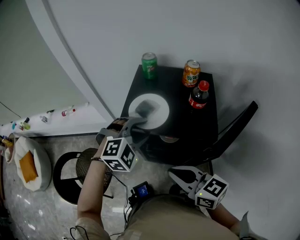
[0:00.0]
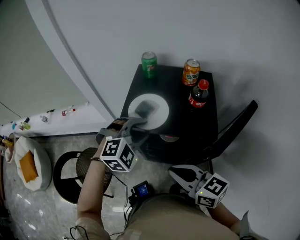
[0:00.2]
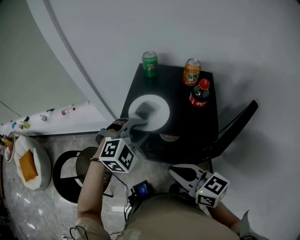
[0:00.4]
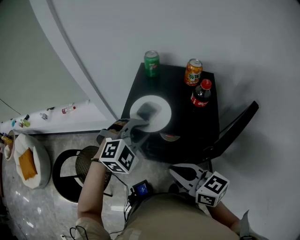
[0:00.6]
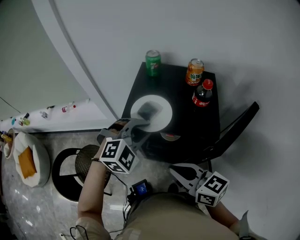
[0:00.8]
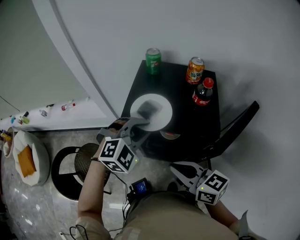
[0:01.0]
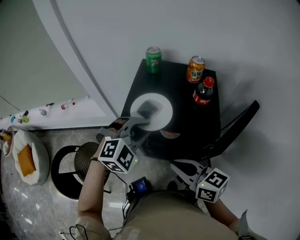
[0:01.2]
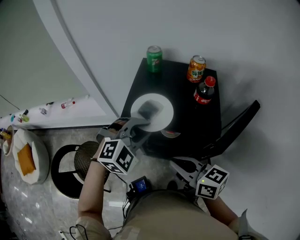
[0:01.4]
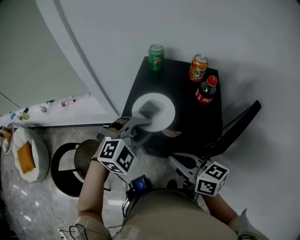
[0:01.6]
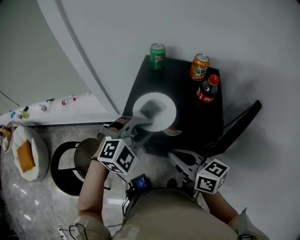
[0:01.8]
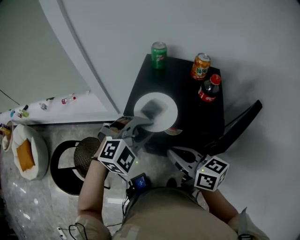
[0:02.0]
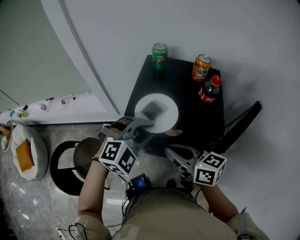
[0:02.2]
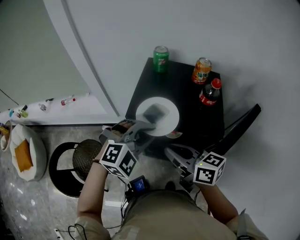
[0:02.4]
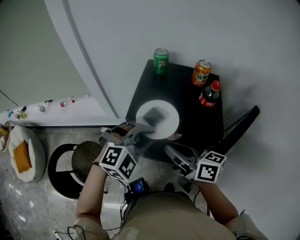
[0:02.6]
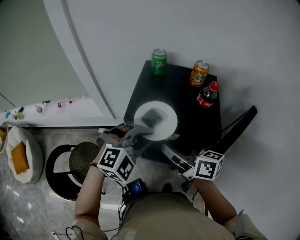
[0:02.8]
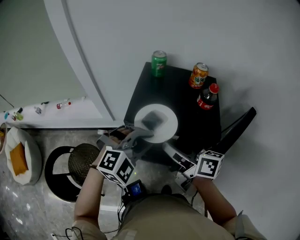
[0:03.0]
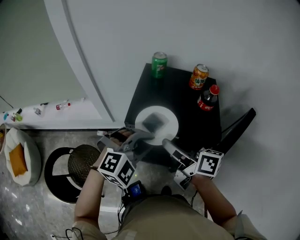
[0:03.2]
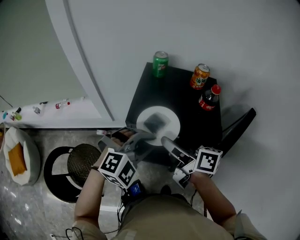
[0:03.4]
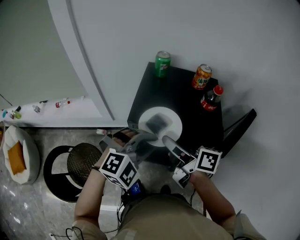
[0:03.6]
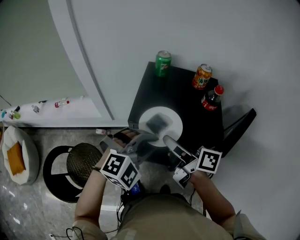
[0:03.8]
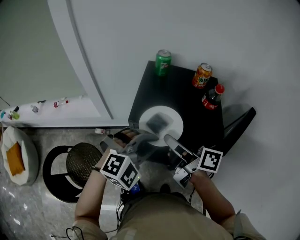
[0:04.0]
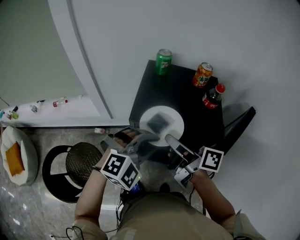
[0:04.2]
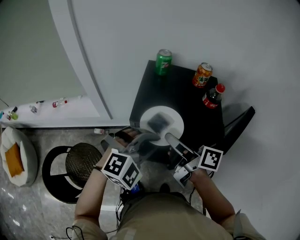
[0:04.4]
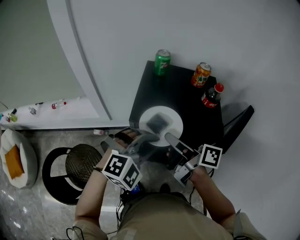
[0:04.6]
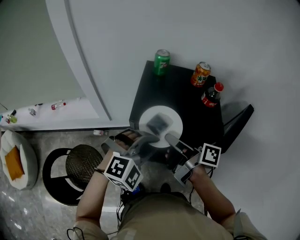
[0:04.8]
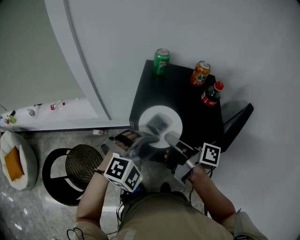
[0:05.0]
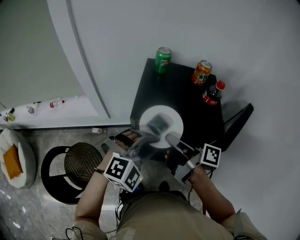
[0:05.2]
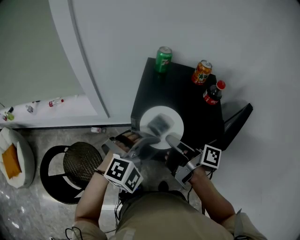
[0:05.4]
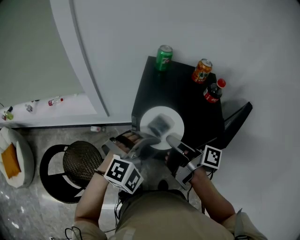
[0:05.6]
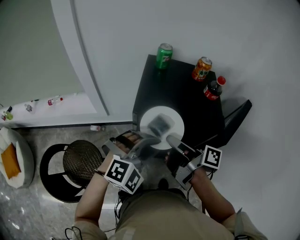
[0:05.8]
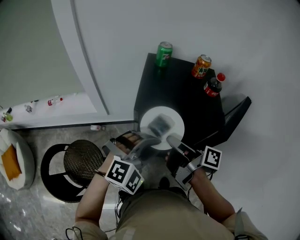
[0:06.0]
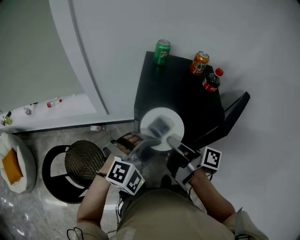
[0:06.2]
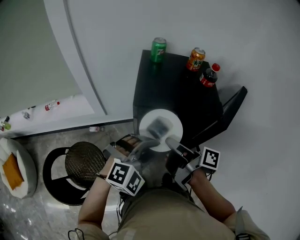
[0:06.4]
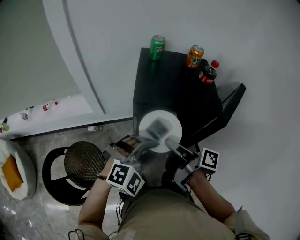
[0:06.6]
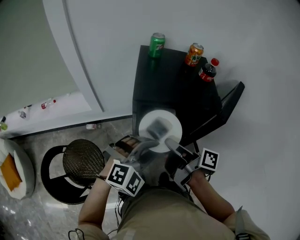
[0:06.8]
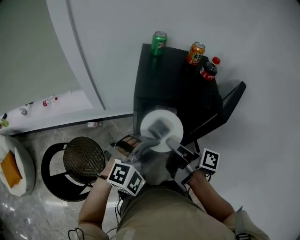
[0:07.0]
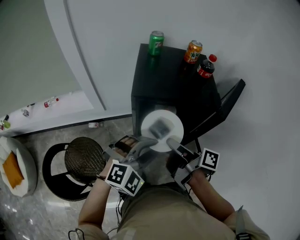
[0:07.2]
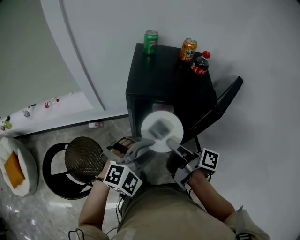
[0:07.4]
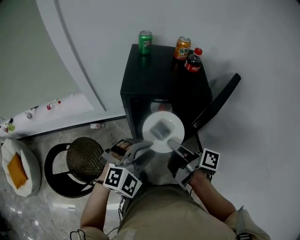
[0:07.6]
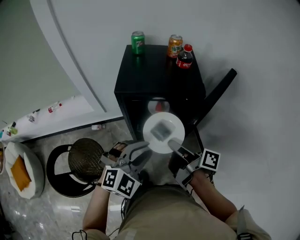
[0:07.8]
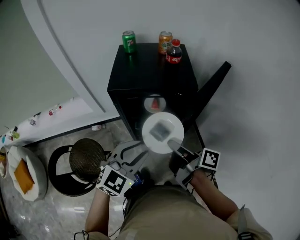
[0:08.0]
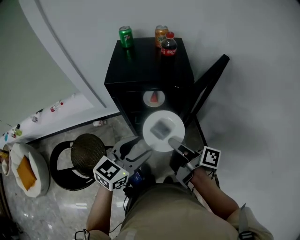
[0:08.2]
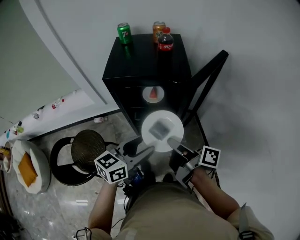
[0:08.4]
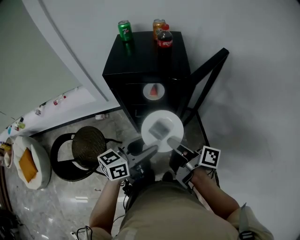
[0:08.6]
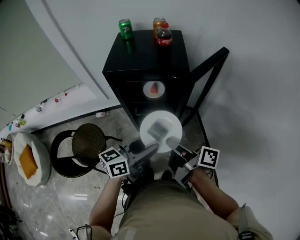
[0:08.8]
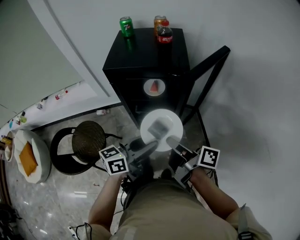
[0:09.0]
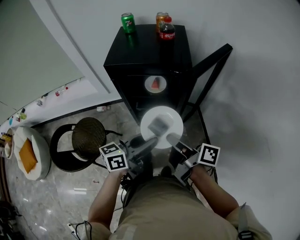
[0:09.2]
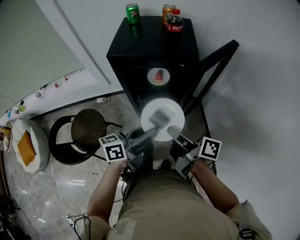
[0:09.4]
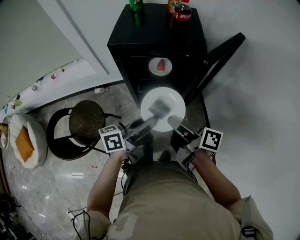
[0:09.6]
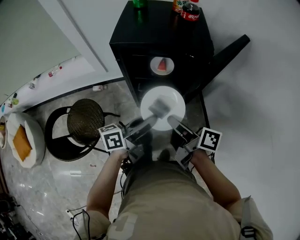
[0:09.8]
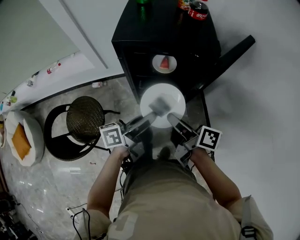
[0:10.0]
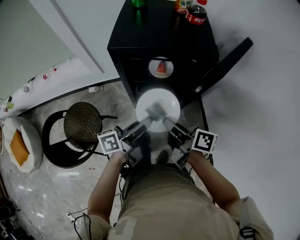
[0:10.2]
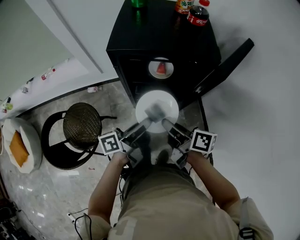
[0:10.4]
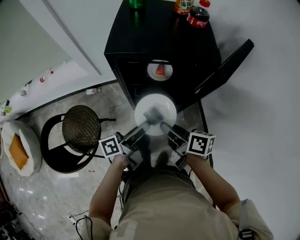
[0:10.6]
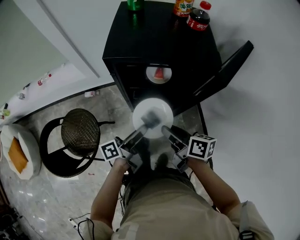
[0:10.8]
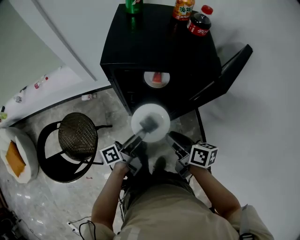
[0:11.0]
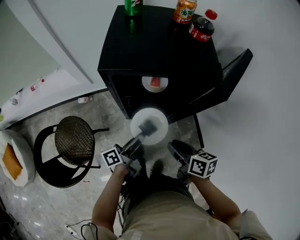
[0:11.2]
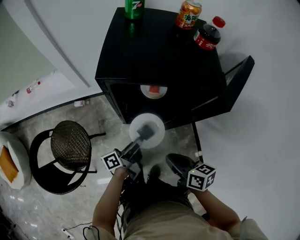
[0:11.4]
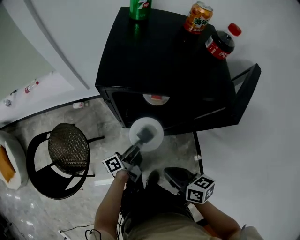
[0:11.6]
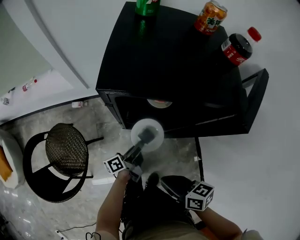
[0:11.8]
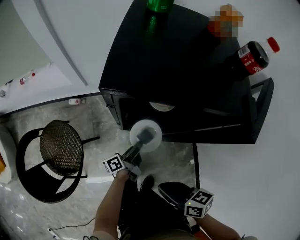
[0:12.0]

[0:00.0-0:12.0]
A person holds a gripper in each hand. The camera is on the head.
0:00.0 to 0:01.6: The grippers make only small movements.
0:01.6 to 0:03.0: The right gripper goes approximately 5 cm forward, turns by roughly 20 degrees, and opens up.
0:03.0 to 0:04.4: The grippers move only a little.
0:04.4 to 0:06.0: The right gripper shifts by roughly 5 cm, swivels about 20 degrees, and closes; the left gripper moves approximately 5 cm.
0:06.0 to 0:07.6: The right gripper goes some 10 cm backward and to the right. The left gripper shifts roughly 10 cm backward.
0:07.6 to 0:09.0: The left gripper is displaced to the right and backward by roughly 10 cm, and twists approximately 80 degrees counterclockwise, seen from behind, while the right gripper moves backward and to the right, approximately 15 cm.
0:09.0 to 0:10.4: Both grippers travel together to the left, forward and downward, roughly 15 cm. The left gripper changes its angle by some 40 degrees, and closes, while the right gripper swivels roughly 20 degrees.
0:10.4 to 0:12.0: The left gripper is displaced downward by some 25 cm. The right gripper travels downward by some 10 cm, and turns by some 30 degrees.

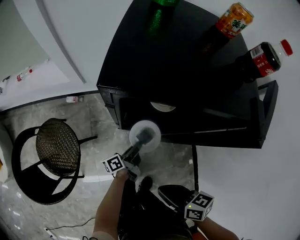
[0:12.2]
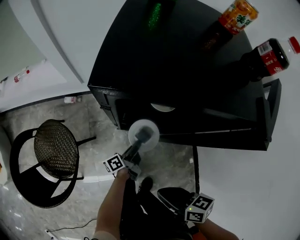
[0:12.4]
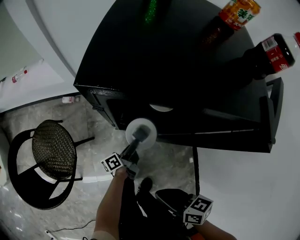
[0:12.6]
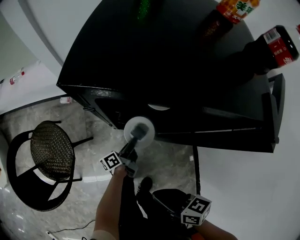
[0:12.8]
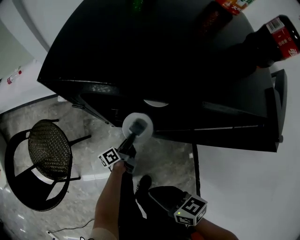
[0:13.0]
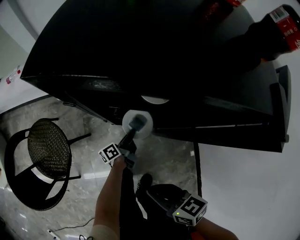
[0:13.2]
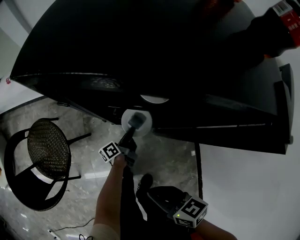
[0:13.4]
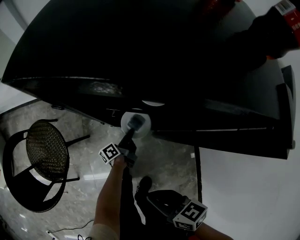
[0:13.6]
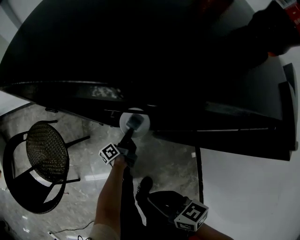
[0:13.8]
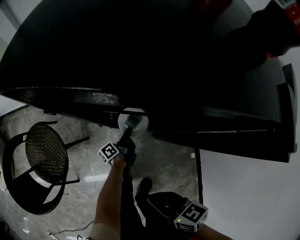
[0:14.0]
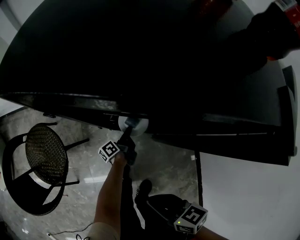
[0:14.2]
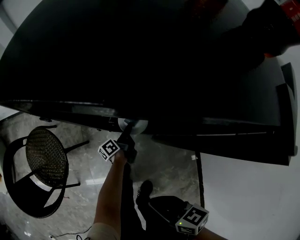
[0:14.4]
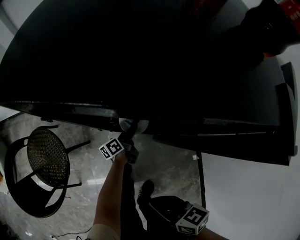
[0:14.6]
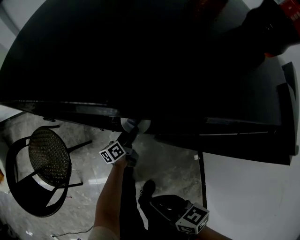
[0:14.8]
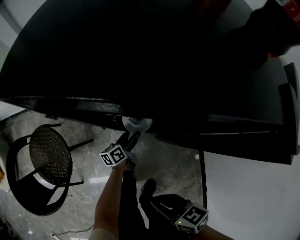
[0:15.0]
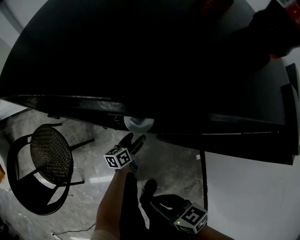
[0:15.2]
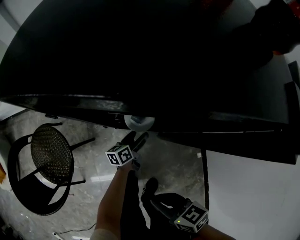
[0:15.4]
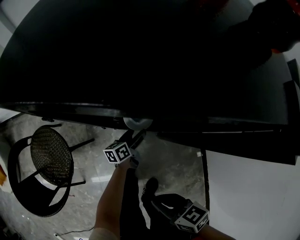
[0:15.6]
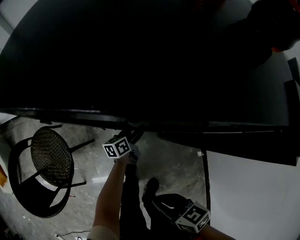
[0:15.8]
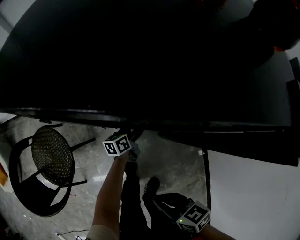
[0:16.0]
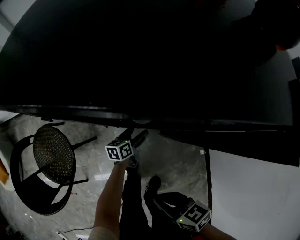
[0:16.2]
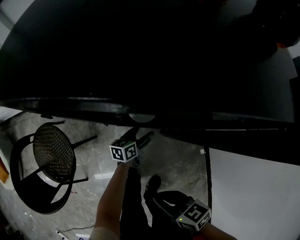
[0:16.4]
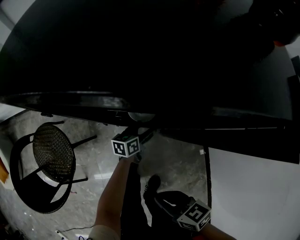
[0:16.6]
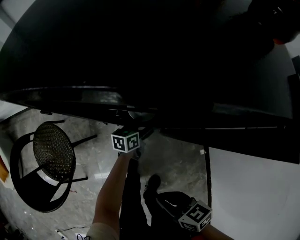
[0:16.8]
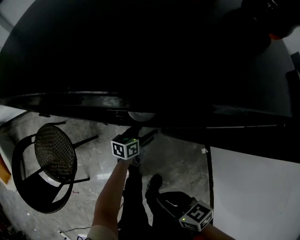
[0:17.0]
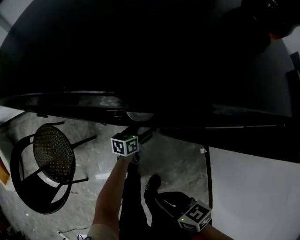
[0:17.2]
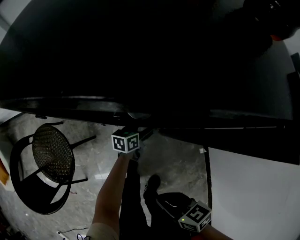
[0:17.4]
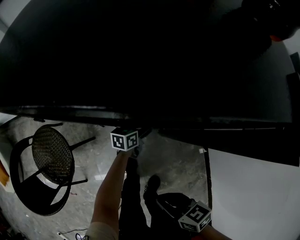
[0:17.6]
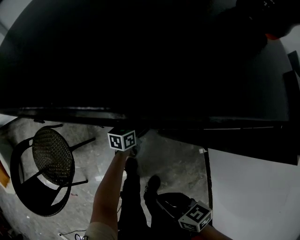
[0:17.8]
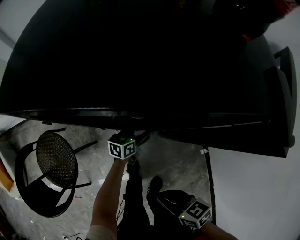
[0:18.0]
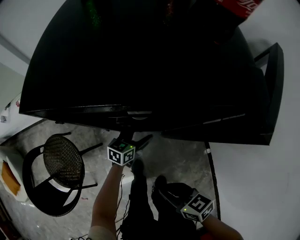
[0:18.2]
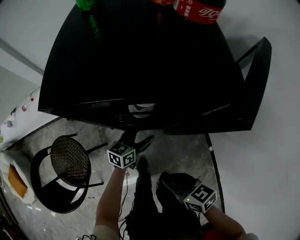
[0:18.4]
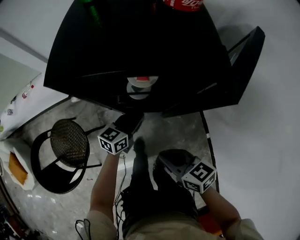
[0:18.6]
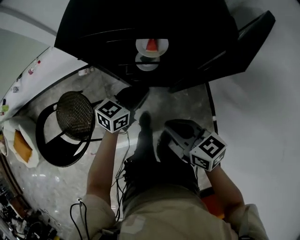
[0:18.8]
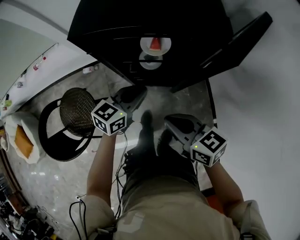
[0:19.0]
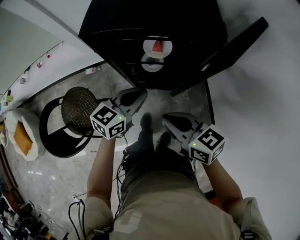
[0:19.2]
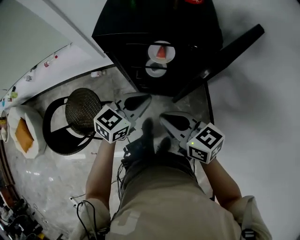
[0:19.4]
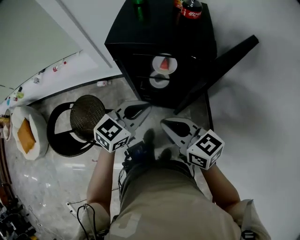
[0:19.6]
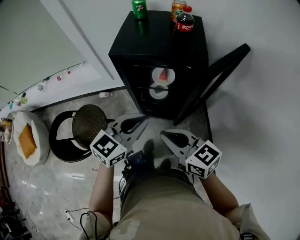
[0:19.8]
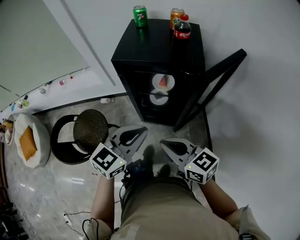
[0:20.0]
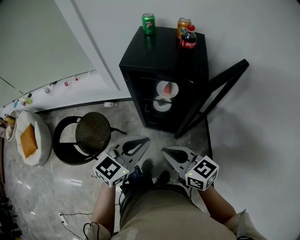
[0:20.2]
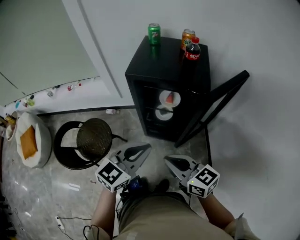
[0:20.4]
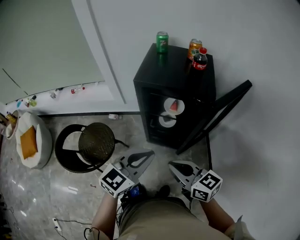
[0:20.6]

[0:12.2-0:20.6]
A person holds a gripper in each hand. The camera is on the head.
0:12.2 to 0:13.6: The left gripper goes about 15 cm downward. Meanwhile the right gripper travels downward by approximately 5 cm.
0:13.6 to 0:15.0: The left gripper rotates roughly 30 degrees, and opens.
0:15.0 to 0:16.4: The left gripper swivels about 20 degrees.
0:16.4 to 0:17.8: The left gripper is displaced forward by about 5 cm.
0:17.8 to 0:19.2: The left gripper is displaced upward and backward by some 40 cm, swivels approximately 30 degrees, and closes. The right gripper moves upward, approximately 20 cm, and rotates approximately 20 degrees.
0:19.2 to 0:20.6: The right gripper moves backward and upward, approximately 15 cm; the left gripper travels upward and backward by about 20 cm, and rotates approximately 20 degrees.

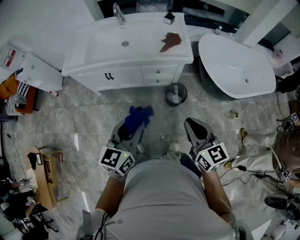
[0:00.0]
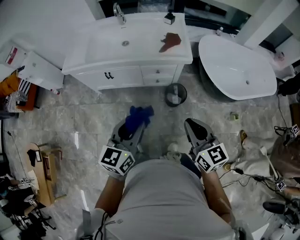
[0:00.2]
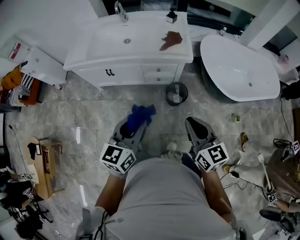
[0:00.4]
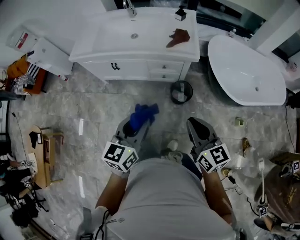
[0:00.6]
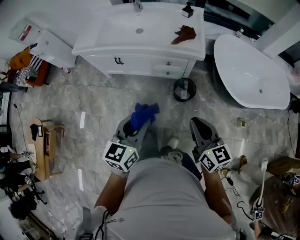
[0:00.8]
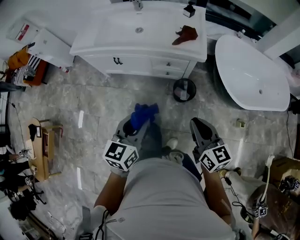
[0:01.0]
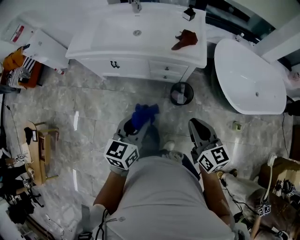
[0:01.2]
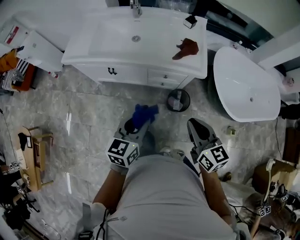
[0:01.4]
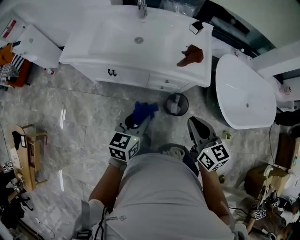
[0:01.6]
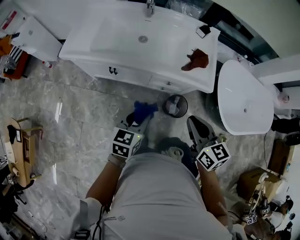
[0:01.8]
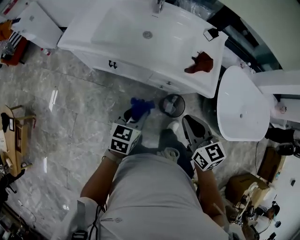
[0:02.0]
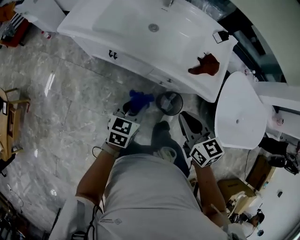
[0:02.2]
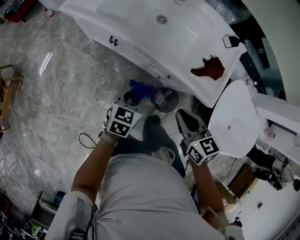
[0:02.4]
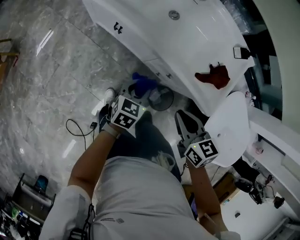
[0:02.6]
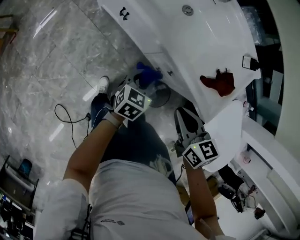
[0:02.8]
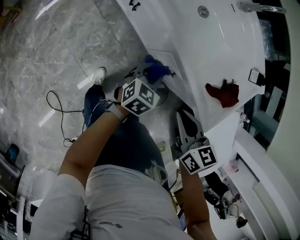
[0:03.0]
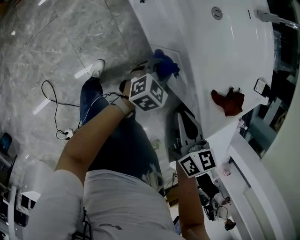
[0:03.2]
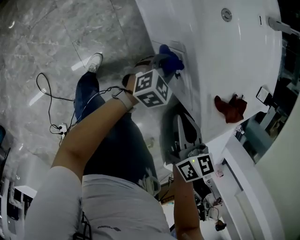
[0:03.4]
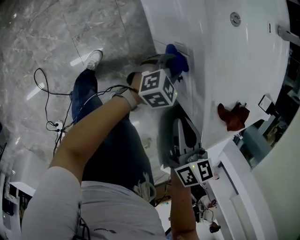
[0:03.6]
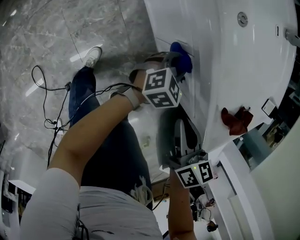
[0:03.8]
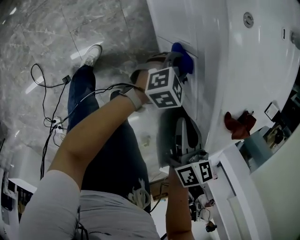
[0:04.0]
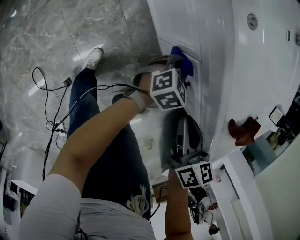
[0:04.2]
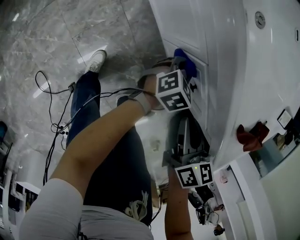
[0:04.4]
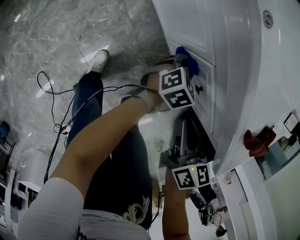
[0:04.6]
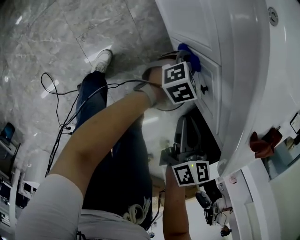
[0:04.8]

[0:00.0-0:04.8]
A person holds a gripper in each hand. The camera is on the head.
0:00.0 to 0:01.6: The right gripper moves forward, about 20 cm, while the left gripper moves forward and downward, approximately 20 cm.
0:01.6 to 0:03.2: Both grippers travel together downward, roughly 25 cm. The left gripper changes its angle by roughly 20 degrees, while the right gripper swivels approximately 40 degrees.
0:03.2 to 0:04.8: Both grippers travel together downward, about 20 cm.
